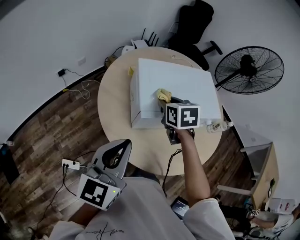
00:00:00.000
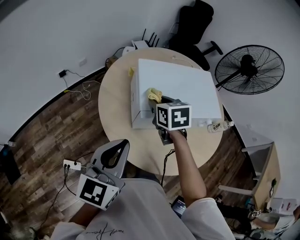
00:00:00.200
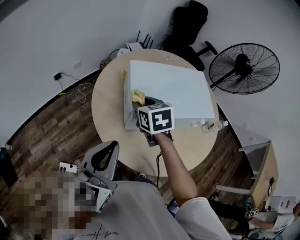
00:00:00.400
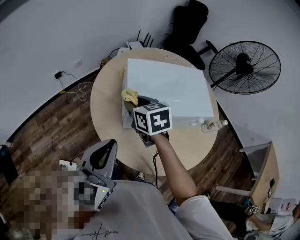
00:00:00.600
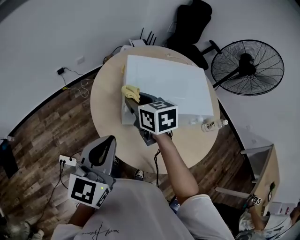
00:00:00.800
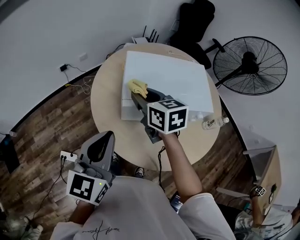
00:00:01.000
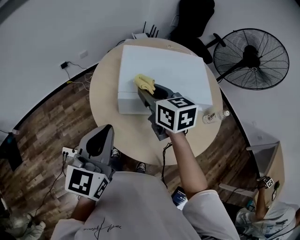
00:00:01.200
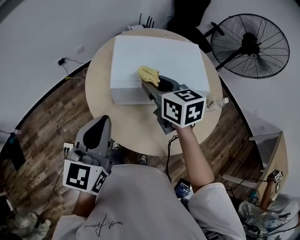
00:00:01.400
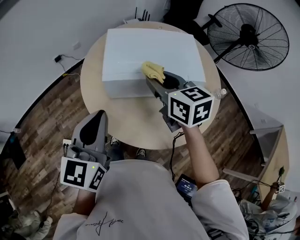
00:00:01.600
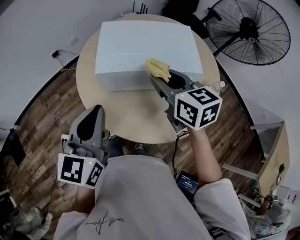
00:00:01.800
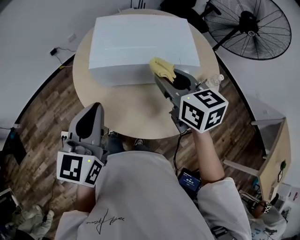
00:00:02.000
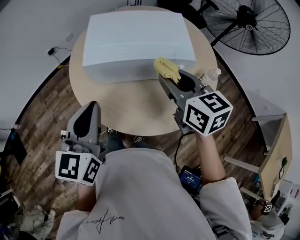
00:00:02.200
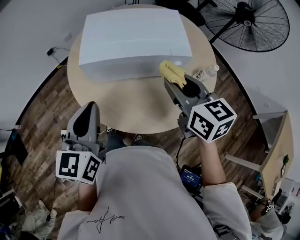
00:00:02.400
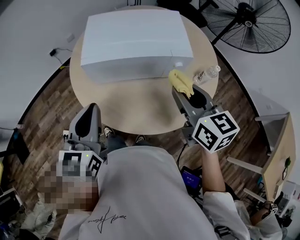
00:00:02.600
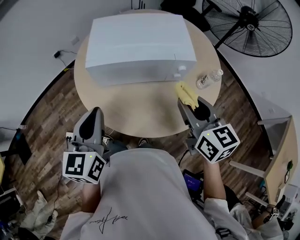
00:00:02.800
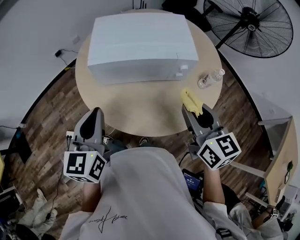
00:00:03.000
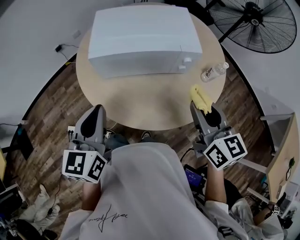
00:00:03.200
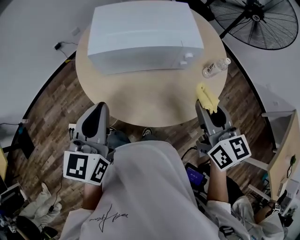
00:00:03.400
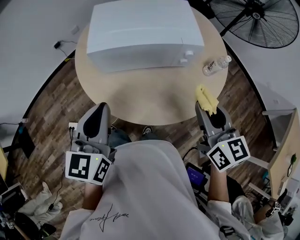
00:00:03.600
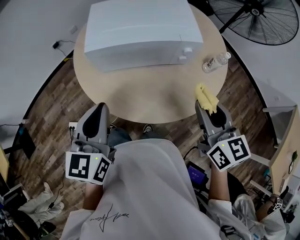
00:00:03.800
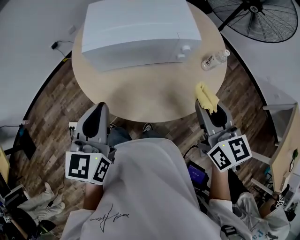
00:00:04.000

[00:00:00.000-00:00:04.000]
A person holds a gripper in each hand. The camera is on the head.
00:00:00.000 to 00:00:01.400: The right gripper heads backward and upward, covering about 10 cm, and turns by roughly 30 degrees. The left gripper moves to the right, about 10 cm.
00:00:01.400 to 00:00:02.600: The left gripper shifts about 10 cm to the right and downward. Meanwhile the right gripper moves to the right and backward, some 25 cm.
00:00:02.600 to 00:00:04.000: The right gripper travels backward by some 10 cm.

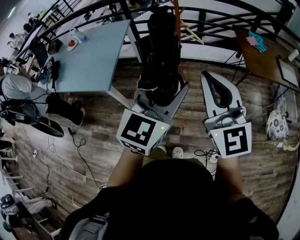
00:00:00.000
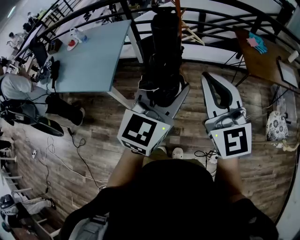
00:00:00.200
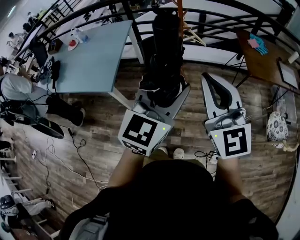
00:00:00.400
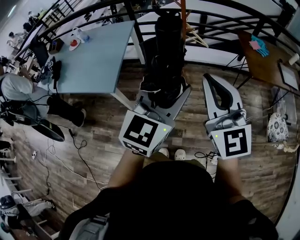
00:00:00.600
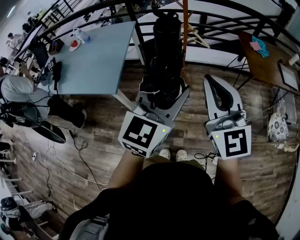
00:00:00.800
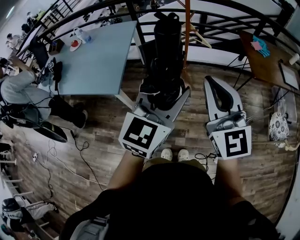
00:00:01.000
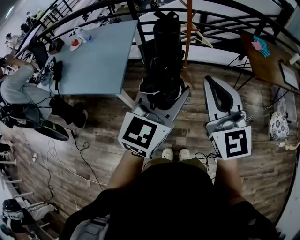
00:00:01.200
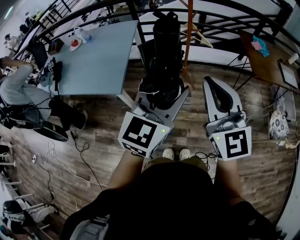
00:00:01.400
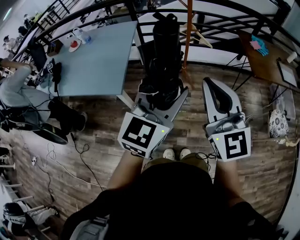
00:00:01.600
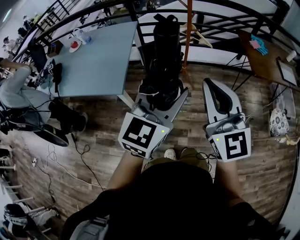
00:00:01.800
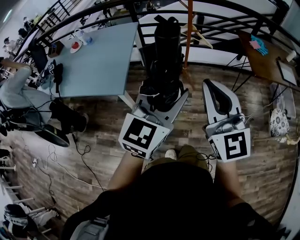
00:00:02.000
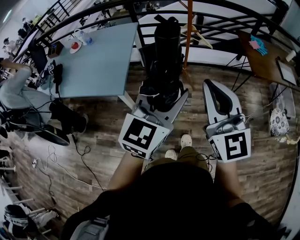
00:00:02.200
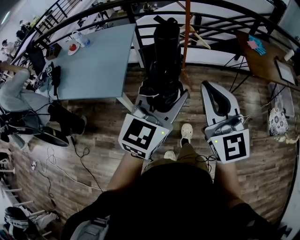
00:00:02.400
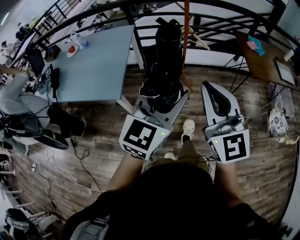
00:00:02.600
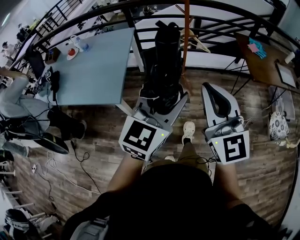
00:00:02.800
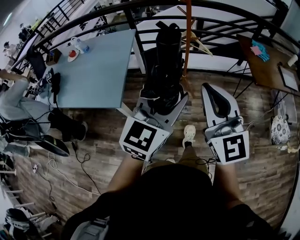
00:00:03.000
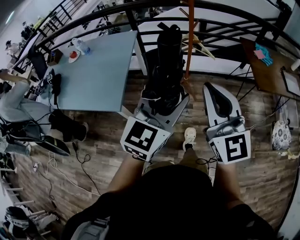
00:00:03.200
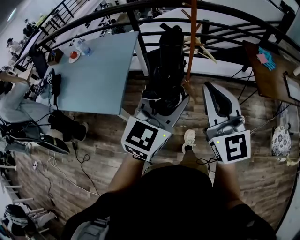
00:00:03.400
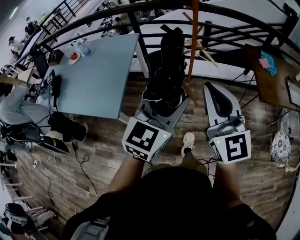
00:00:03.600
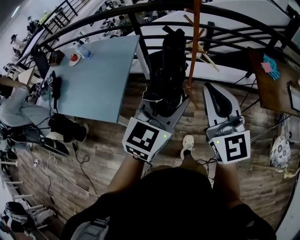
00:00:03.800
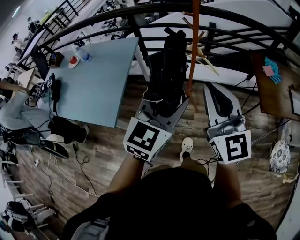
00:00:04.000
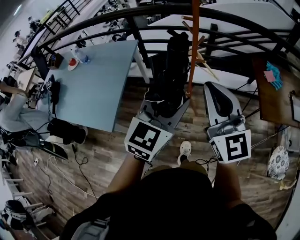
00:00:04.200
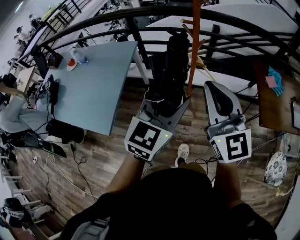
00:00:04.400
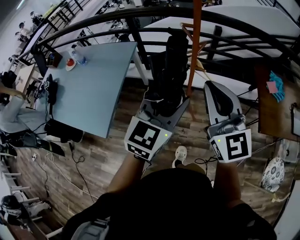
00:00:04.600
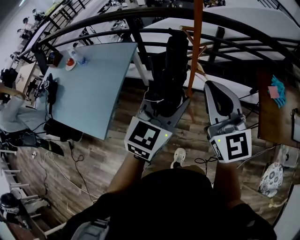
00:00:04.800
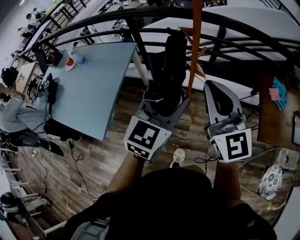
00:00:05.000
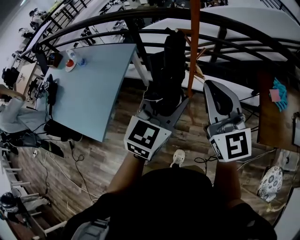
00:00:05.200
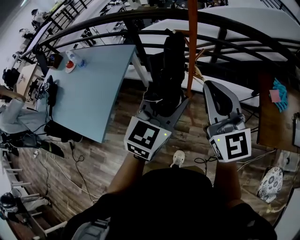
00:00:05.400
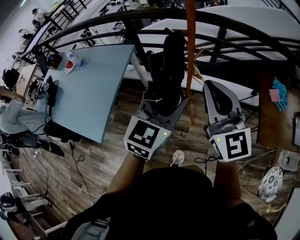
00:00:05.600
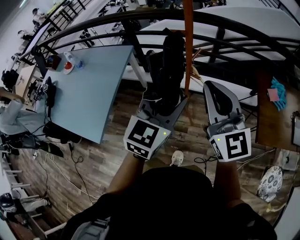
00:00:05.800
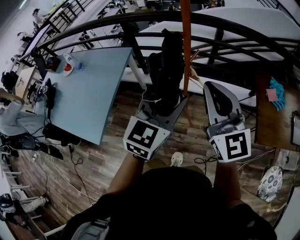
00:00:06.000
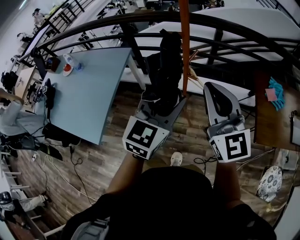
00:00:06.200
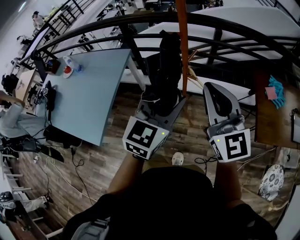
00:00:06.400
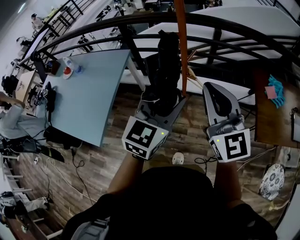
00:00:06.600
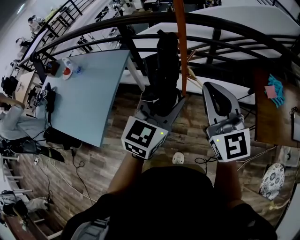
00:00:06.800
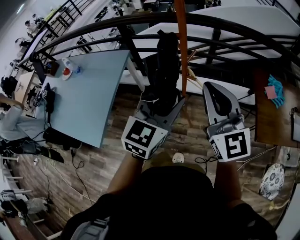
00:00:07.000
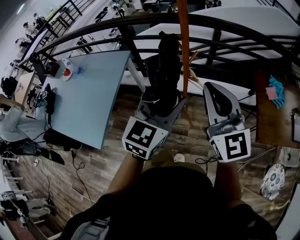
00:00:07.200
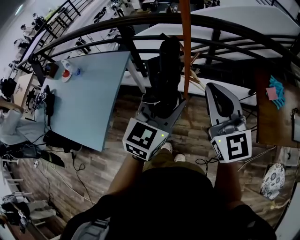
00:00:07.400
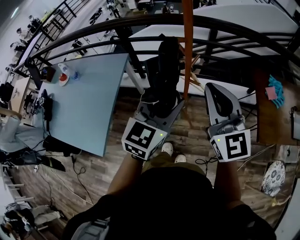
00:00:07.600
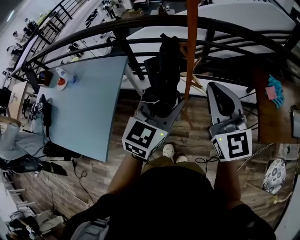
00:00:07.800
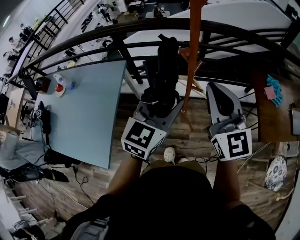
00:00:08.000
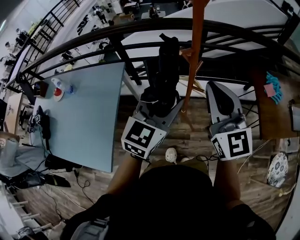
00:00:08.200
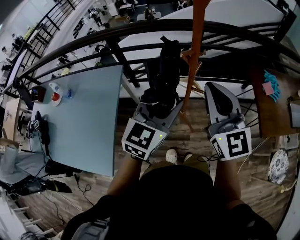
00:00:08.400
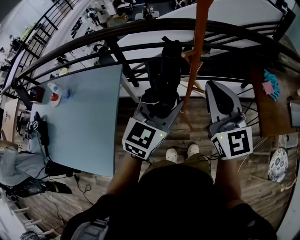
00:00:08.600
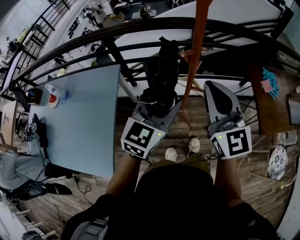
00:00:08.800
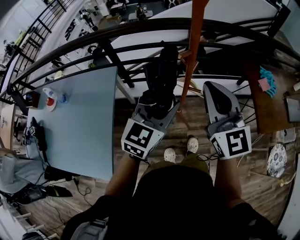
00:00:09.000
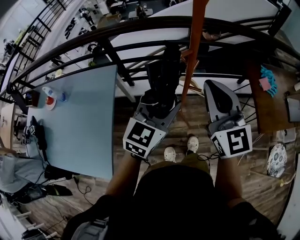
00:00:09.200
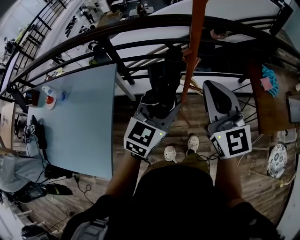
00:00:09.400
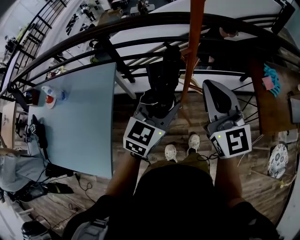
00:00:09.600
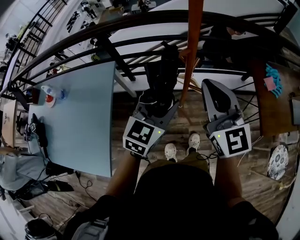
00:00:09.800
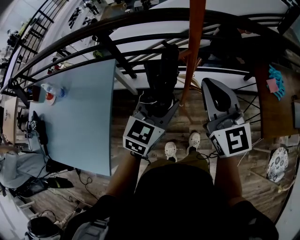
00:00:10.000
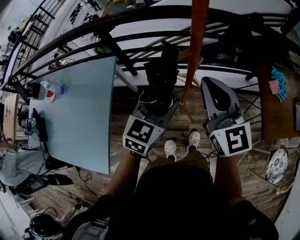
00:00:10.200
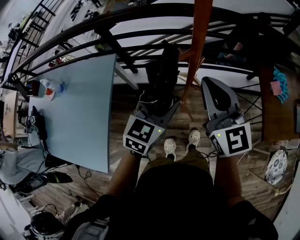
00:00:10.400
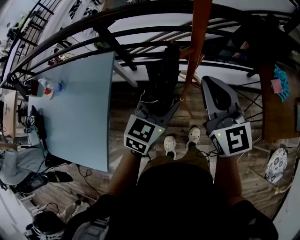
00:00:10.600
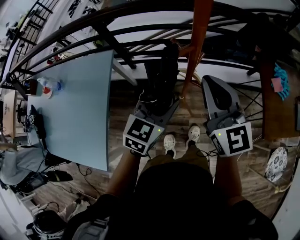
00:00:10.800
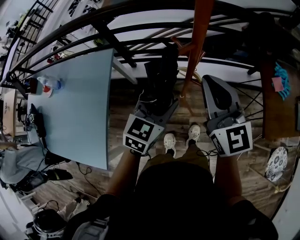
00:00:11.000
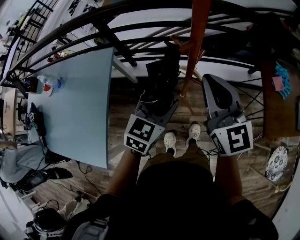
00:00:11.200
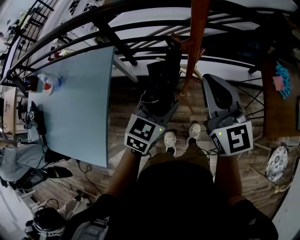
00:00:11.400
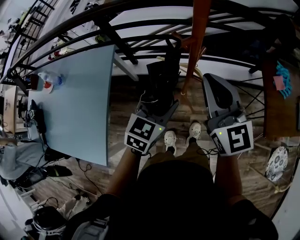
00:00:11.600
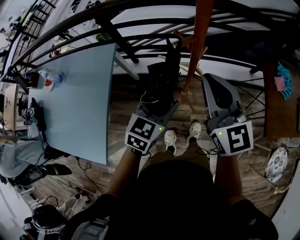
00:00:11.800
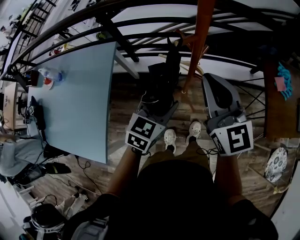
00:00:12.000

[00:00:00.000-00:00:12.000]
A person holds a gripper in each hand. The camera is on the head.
00:00:00.000 to 00:00:01.600: The grippers both shift to the left by some 15 cm.
00:00:01.600 to 00:00:03.000: The two grippers go roughly 5 cm forward.
00:00:03.000 to 00:00:04.400: The grippers both shift forward by about 25 cm.
00:00:04.400 to 00:00:06.000: Both grippers travel together forward and to the right, approximately 10 cm.
00:00:06.000 to 00:00:07.600: There are only small adjustments of the grippers.
00:00:07.600 to 00:00:09.000: The two grippers go some 10 cm to the left and forward.
00:00:09.000 to 00:00:10.400: The right gripper is displaced forward and downward by some 10 cm. The left gripper heads downward and forward, covering roughly 10 cm.
00:00:10.400 to 00:00:12.000: The left gripper shifts some 5 cm downward.

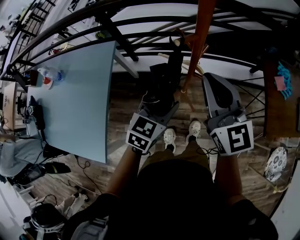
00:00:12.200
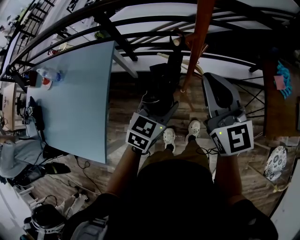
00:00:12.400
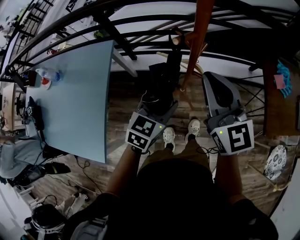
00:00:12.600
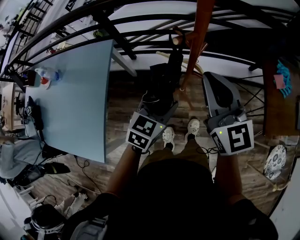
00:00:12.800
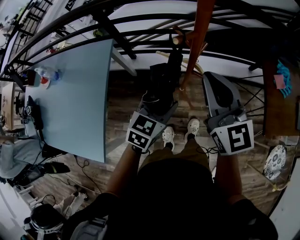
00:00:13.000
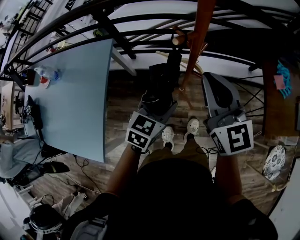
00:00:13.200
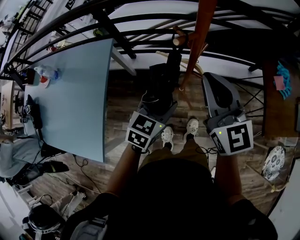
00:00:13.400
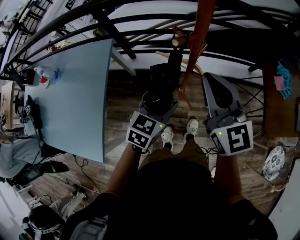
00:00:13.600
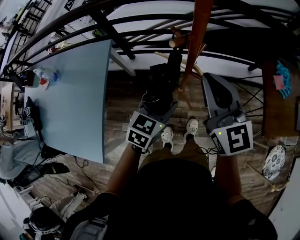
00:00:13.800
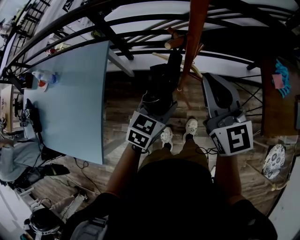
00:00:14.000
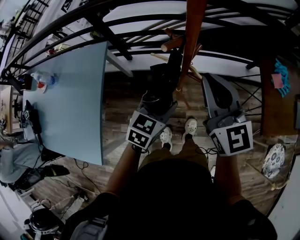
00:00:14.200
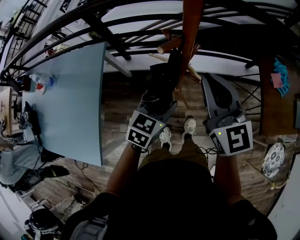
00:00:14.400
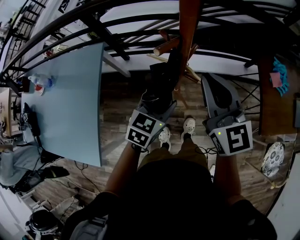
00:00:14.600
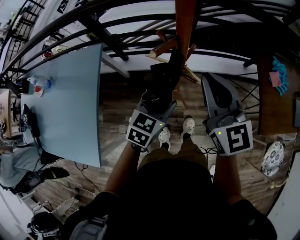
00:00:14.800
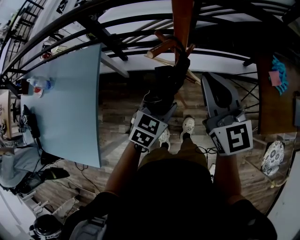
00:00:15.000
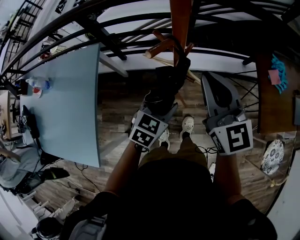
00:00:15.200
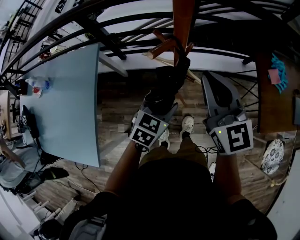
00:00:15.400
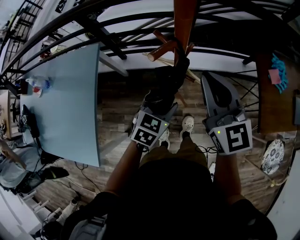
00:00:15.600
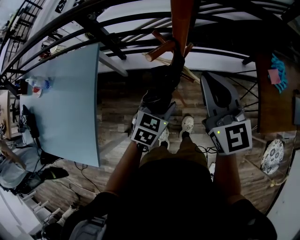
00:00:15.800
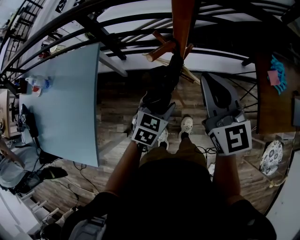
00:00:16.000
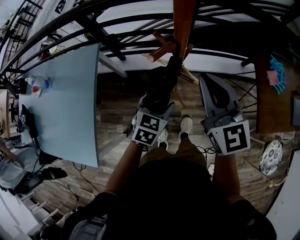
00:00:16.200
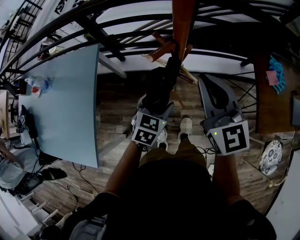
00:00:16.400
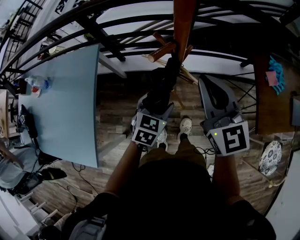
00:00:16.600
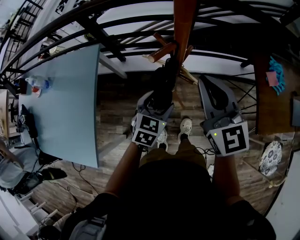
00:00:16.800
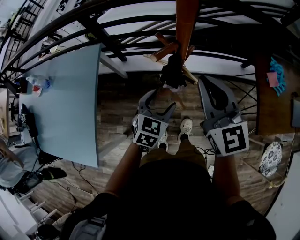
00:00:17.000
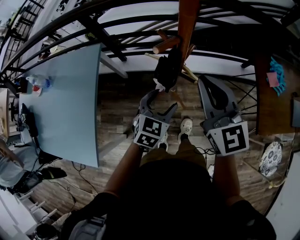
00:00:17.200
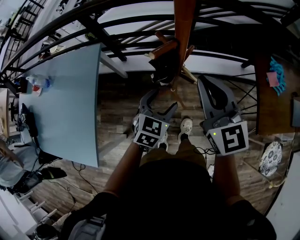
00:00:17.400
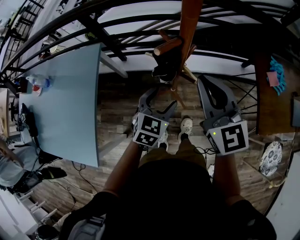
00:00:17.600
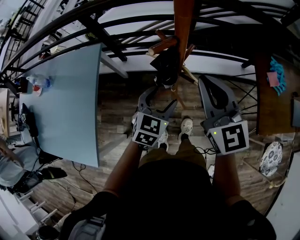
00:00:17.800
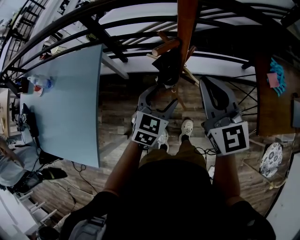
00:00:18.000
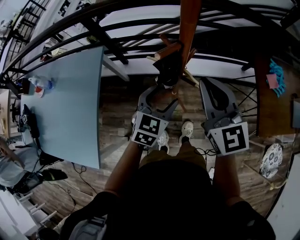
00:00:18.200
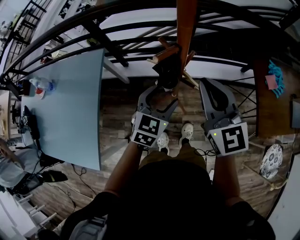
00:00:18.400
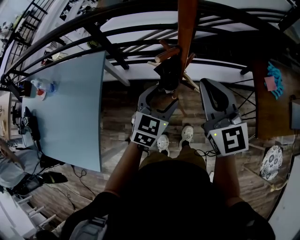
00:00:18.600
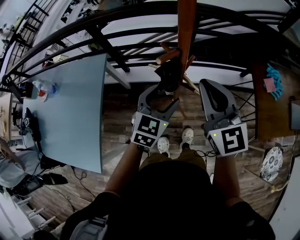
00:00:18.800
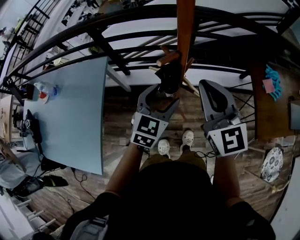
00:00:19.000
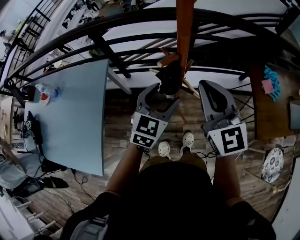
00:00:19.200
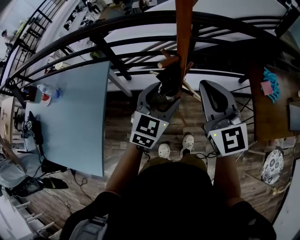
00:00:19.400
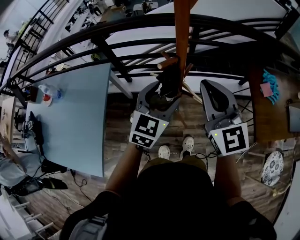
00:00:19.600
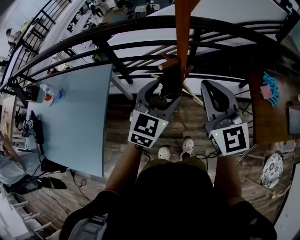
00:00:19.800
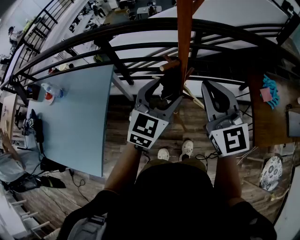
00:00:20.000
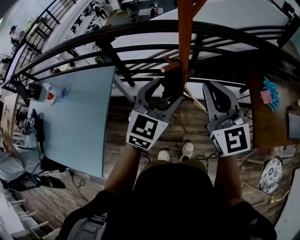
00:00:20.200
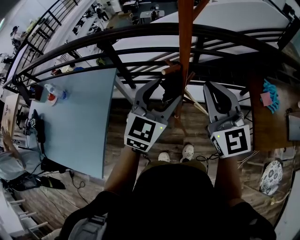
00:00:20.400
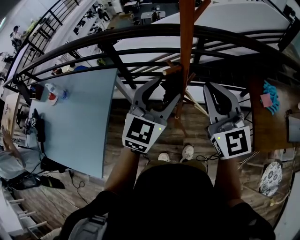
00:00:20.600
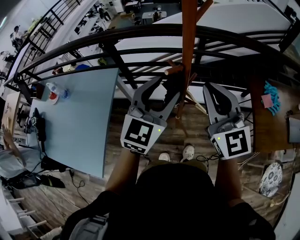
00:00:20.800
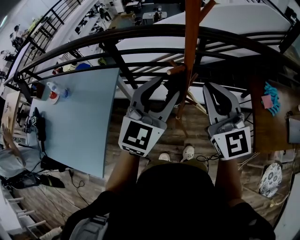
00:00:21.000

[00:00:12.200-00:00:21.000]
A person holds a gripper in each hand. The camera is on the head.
00:00:12.200 to 00:00:13.600: There are only small adjustments of the grippers.
00:00:13.600 to 00:00:15.200: The right gripper moves about 5 cm. The left gripper is displaced to the right by about 5 cm.
00:00:15.200 to 00:00:18.000: The grippers stay close to where they were, moving slightly.
00:00:18.000 to 00:00:19.600: The left gripper heads upward, covering roughly 10 cm. The right gripper shifts some 5 cm upward.
00:00:19.600 to 00:00:21.000: The left gripper goes roughly 10 cm upward, and closes.
